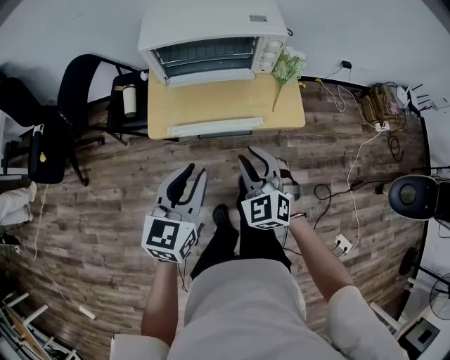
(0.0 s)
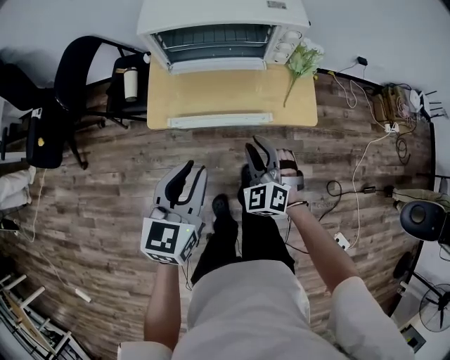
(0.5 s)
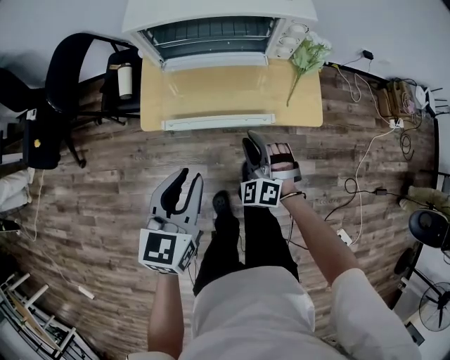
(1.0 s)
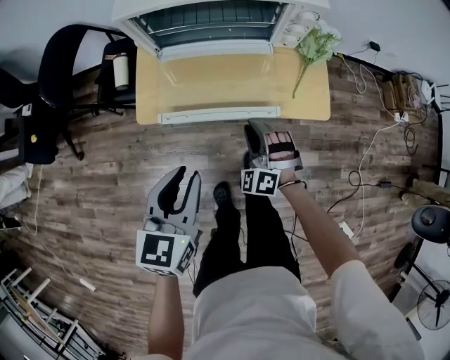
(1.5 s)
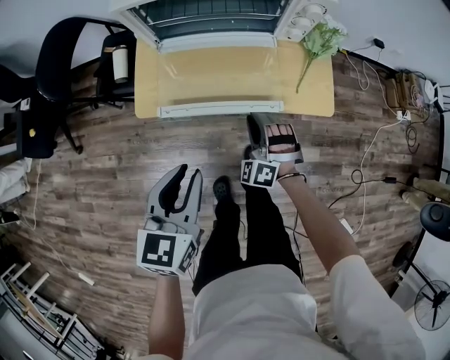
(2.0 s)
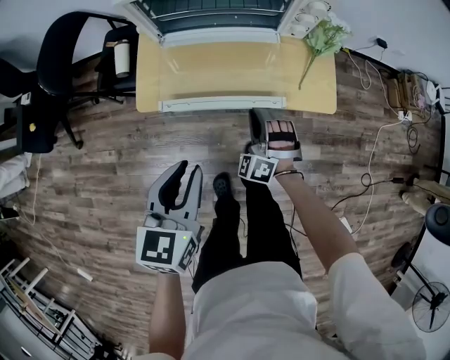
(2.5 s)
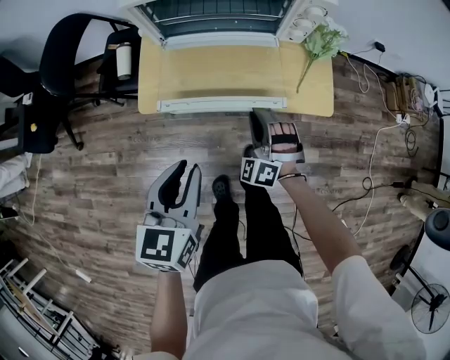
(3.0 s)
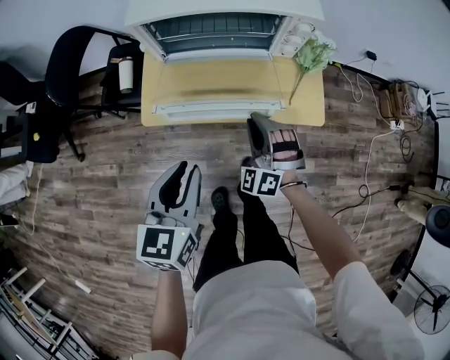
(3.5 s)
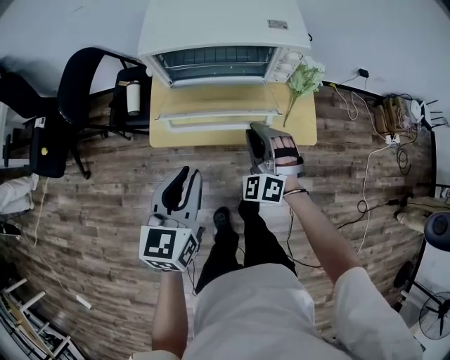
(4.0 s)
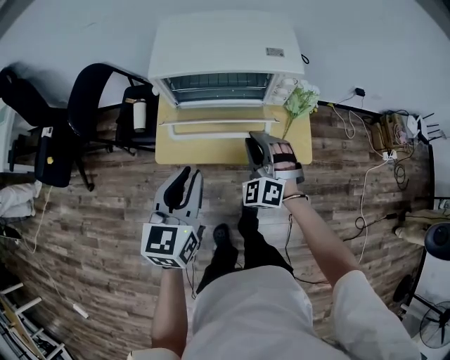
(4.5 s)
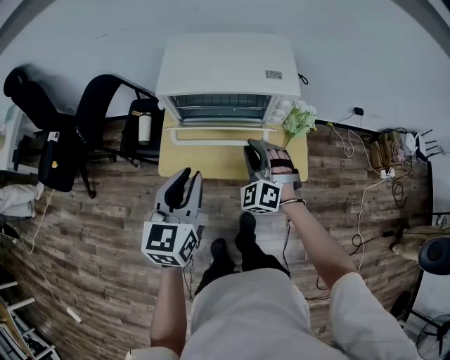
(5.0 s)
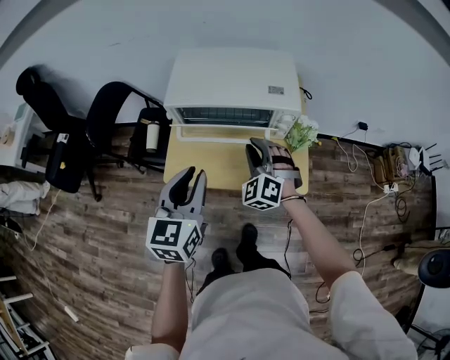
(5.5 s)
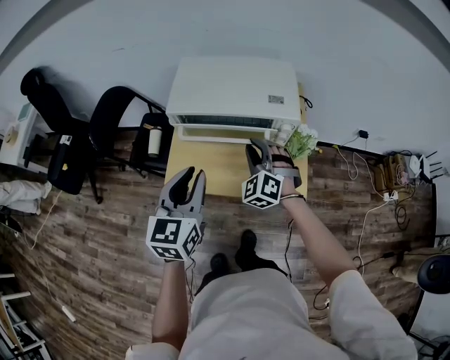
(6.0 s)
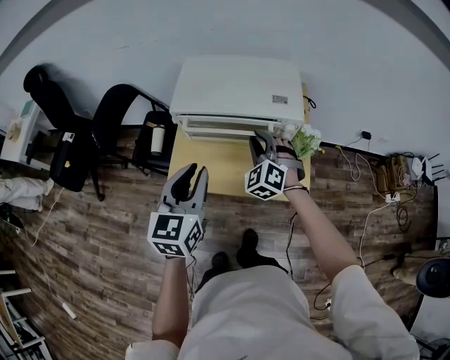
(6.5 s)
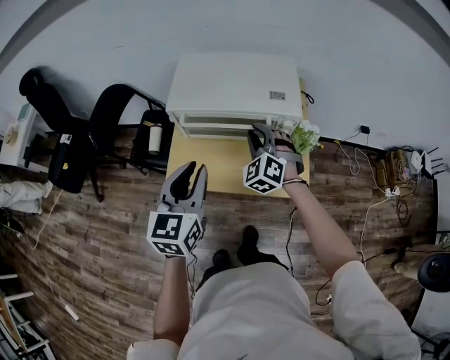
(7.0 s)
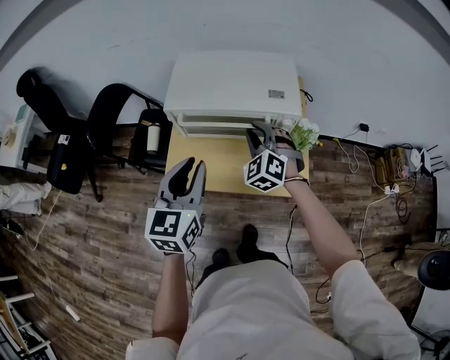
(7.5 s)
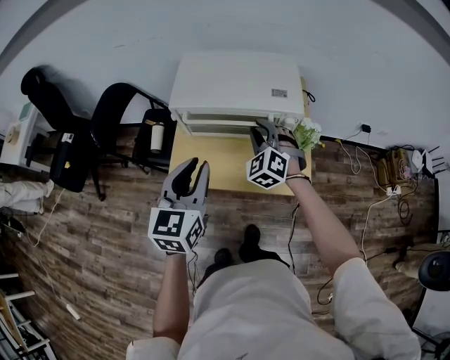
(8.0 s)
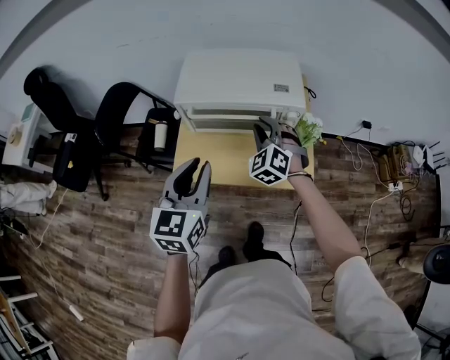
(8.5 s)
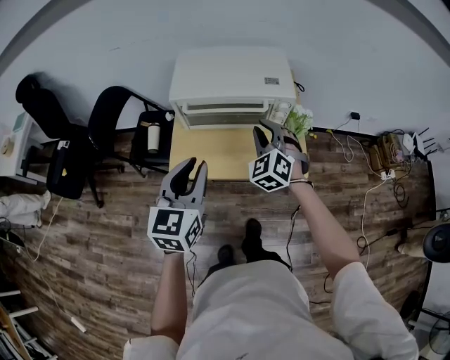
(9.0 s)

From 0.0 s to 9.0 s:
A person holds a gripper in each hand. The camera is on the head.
From 0.0 s to 2.0 s: The right gripper is displaced downward and forward by approximately 20 cm, and rotates some 30 degrees. The left gripper heads downward, covering roughly 10 cm.
From 2.0 s to 4.5 s: The left gripper travels upward and forward by some 15 cm. The right gripper is displaced upward by roughly 20 cm.
From 4.5 s to 7.0 s: The grippers both shift forward and upward by roughly 10 cm.
From 7.0 s to 9.0 s: The two grippers go roughly 5 cm backward.

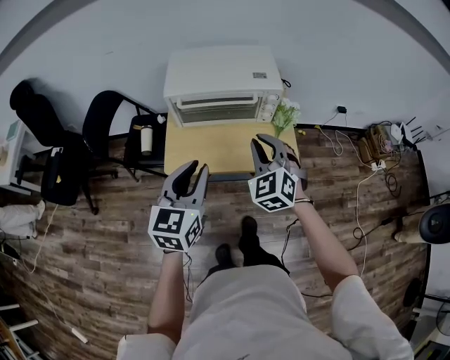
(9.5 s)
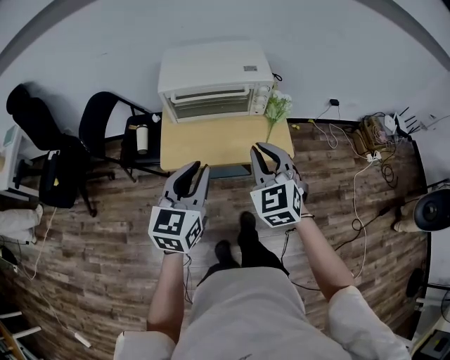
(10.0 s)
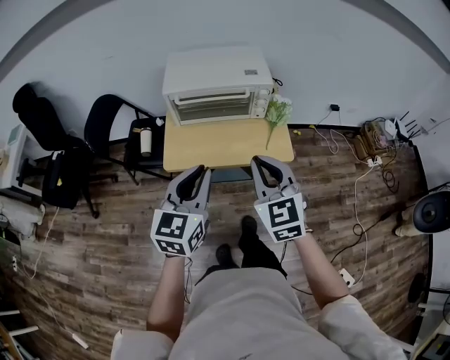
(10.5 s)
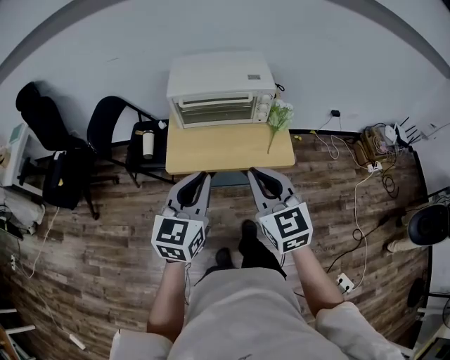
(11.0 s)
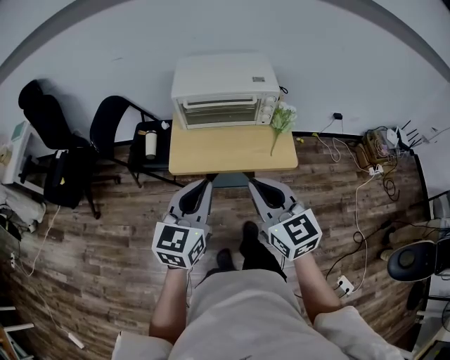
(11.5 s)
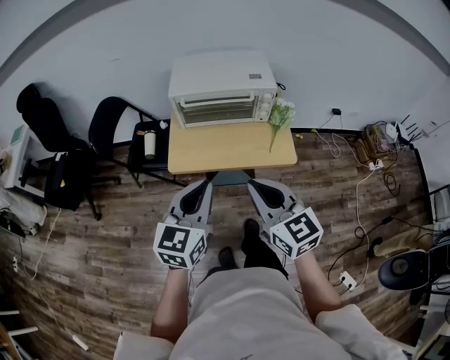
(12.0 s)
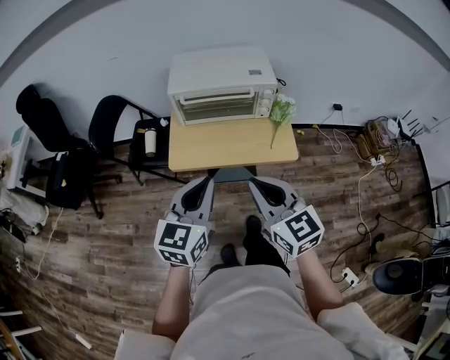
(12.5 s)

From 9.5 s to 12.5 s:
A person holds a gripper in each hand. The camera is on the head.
From 9.5 s to 11.0 s: The right gripper goes some 15 cm backward and upward, and rotates approximately 30 degrees, while the left gripper shifts roughly 10 cm backward.
From 11.0 s to 12.5 s: The grippers stay close to where they were, moving slightly.

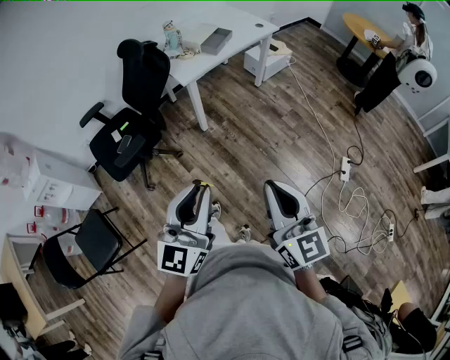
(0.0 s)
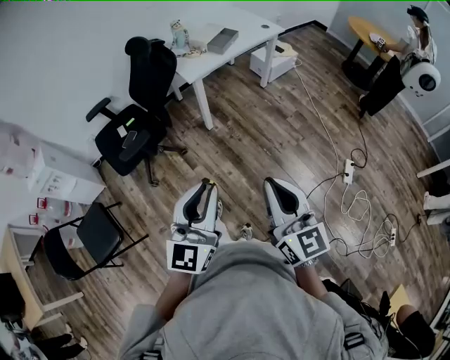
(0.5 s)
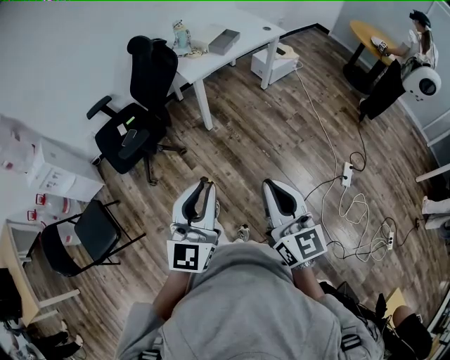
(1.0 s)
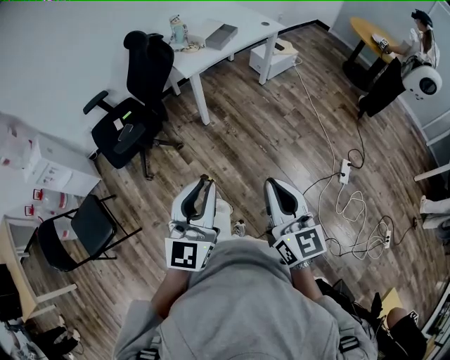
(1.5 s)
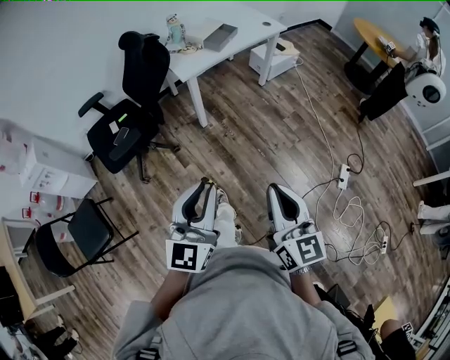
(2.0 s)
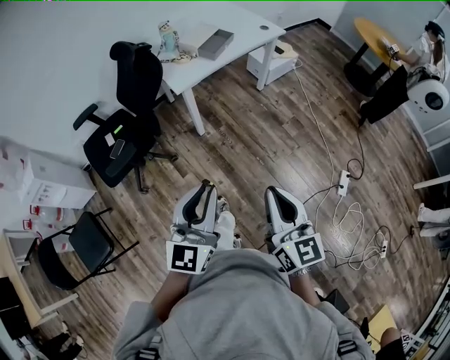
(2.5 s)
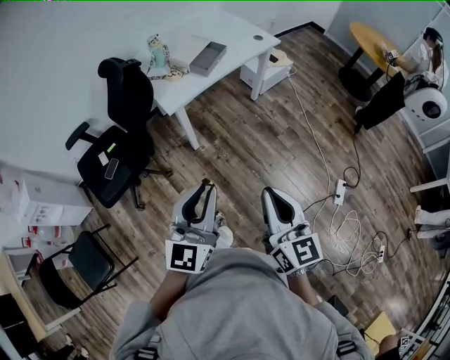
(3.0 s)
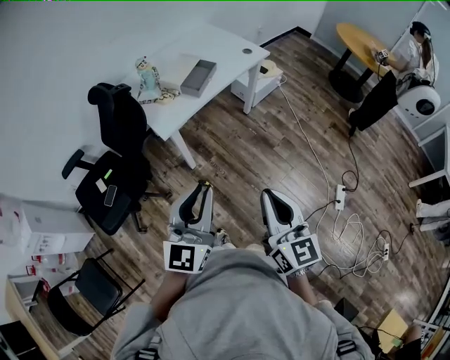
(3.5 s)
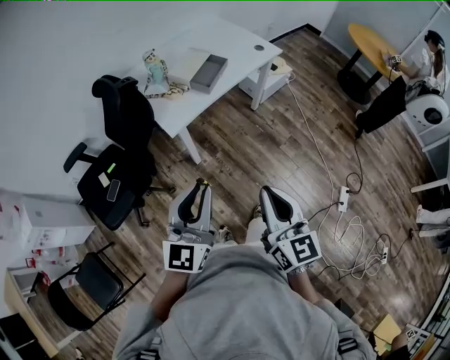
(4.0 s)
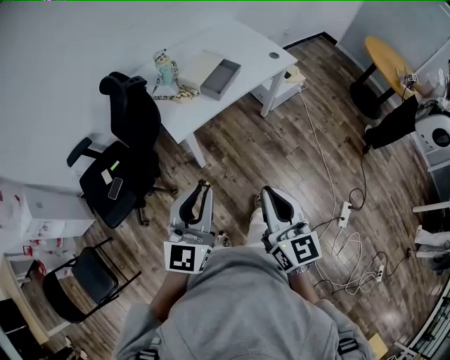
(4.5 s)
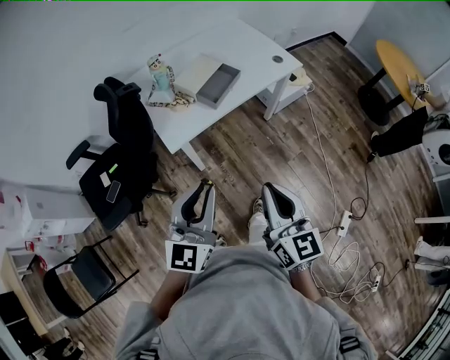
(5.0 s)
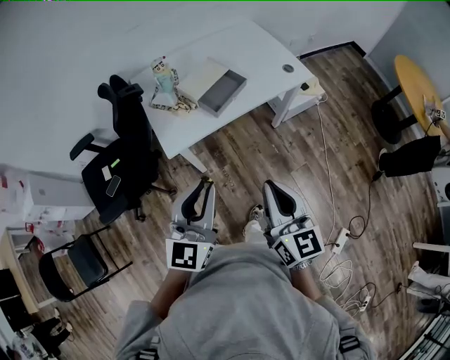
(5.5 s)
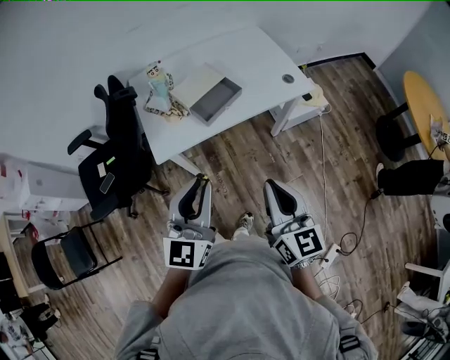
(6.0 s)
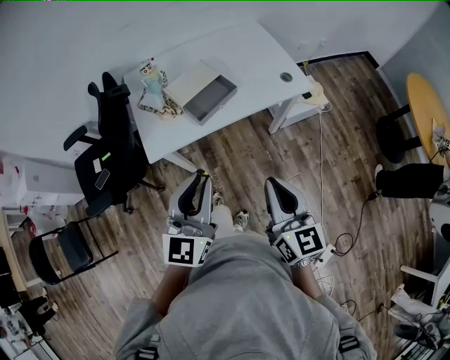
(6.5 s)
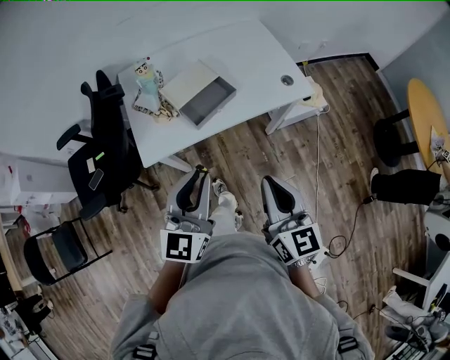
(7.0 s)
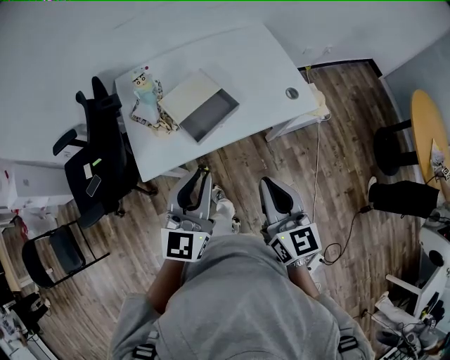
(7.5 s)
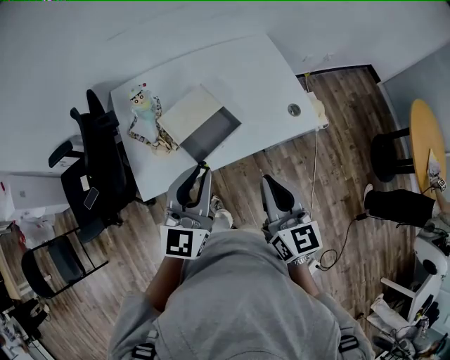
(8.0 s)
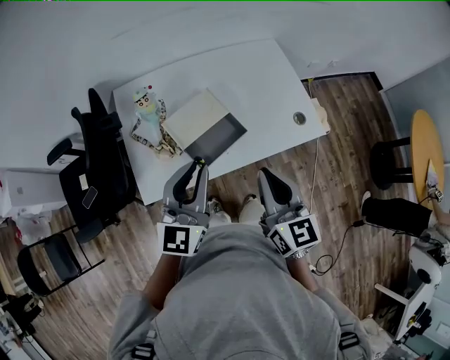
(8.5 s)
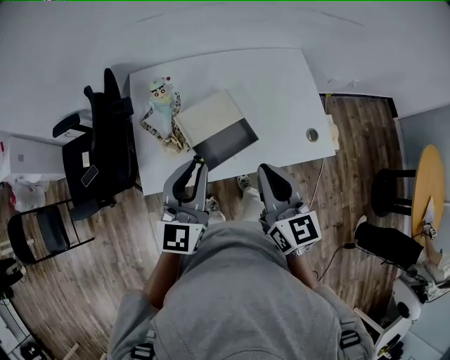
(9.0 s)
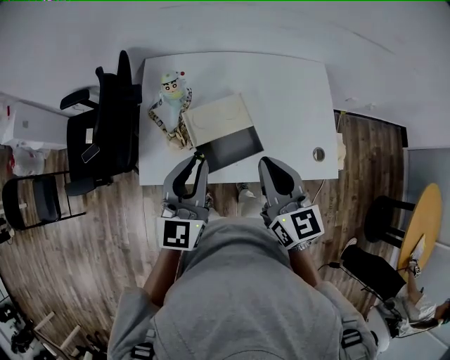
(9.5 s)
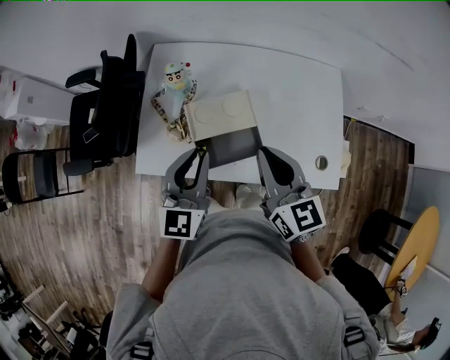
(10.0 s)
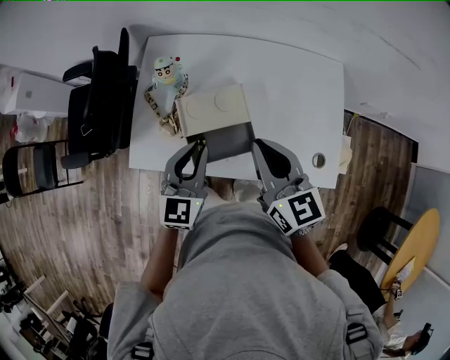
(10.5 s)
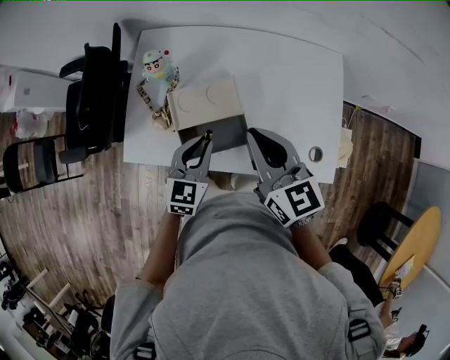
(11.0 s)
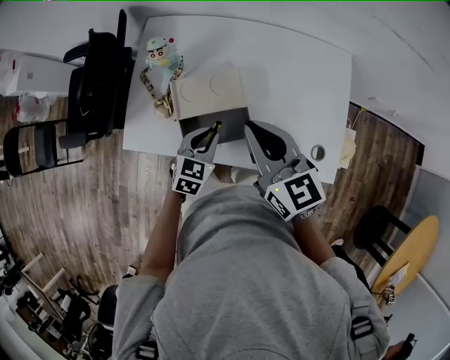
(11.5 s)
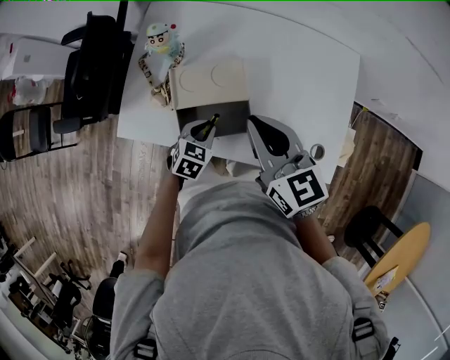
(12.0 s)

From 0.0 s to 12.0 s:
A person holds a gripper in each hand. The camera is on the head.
From 0.0 s to 2.0 s: The grippers both shift to the right by about 5 cm.
From 2.0 s to 4.0 s: The two grippers go roughly 30 cm forward.
From 4.0 s to 6.0 s: Both grippers move forward and to the right, approximately 30 cm.
From 6.0 s to 8.0 s: The two grippers go approximately 25 cm forward.
From 8.0 s to 10.0 s: The right gripper shifts by approximately 20 cm, and swivels approximately 30 degrees. Meanwhile the left gripper shifts by some 15 cm, and swivels roughly 30 degrees.
From 10.0 s to 12.0 s: The right gripper shifts by about 5 cm. The left gripper heads downward, covering approximately 25 cm, and points its fingers approximately 40 degrees further downward.

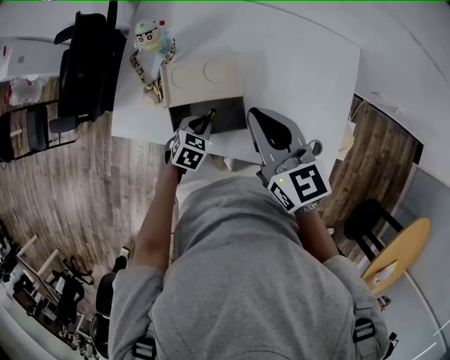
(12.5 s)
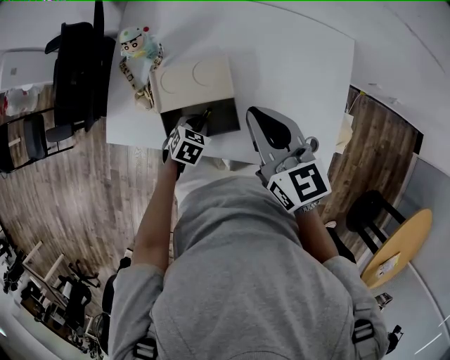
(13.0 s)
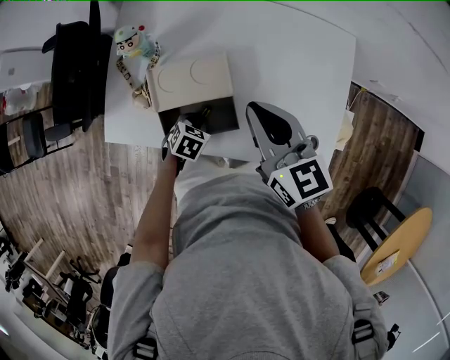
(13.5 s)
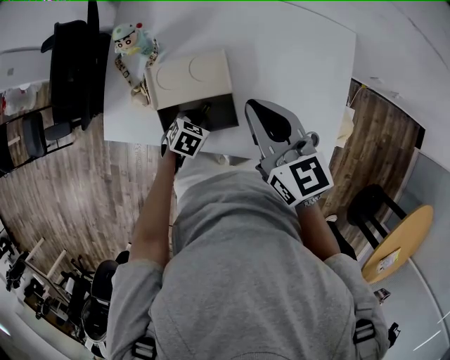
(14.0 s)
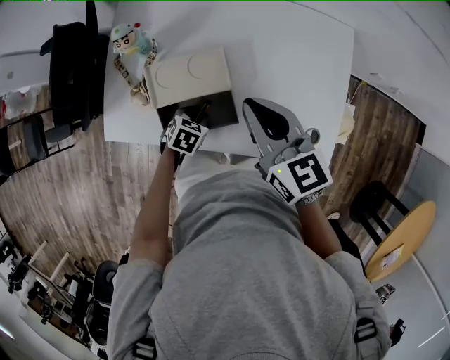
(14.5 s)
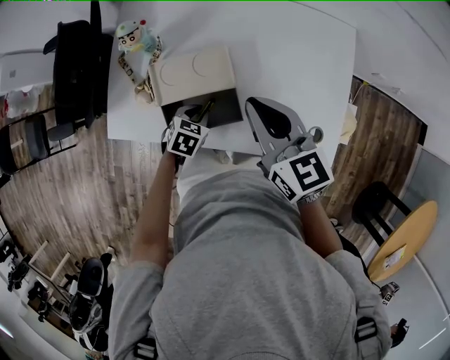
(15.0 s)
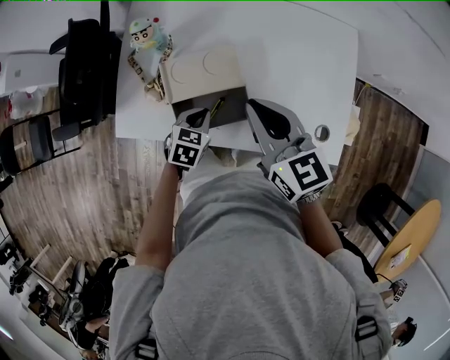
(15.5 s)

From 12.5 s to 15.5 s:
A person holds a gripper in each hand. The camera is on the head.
From 12.5 s to 14.0 s: There are only small adjustments of the grippers.
From 14.0 s to 15.5 s: The left gripper moves upward, roughly 10 cm.
